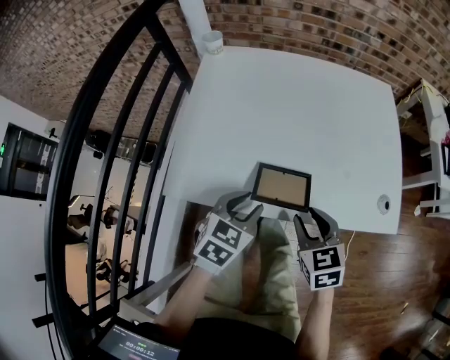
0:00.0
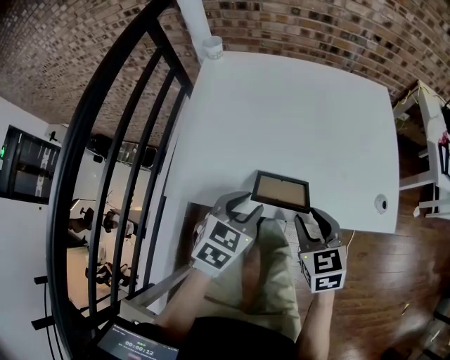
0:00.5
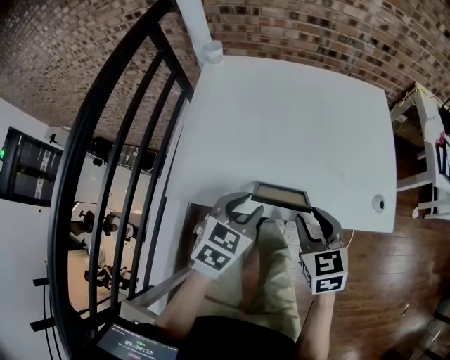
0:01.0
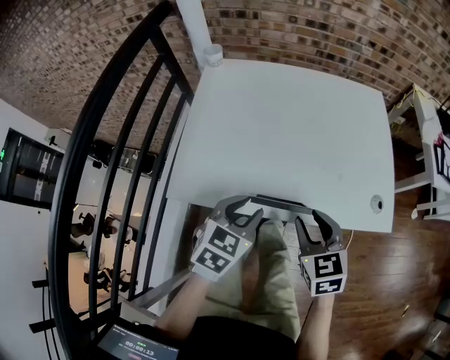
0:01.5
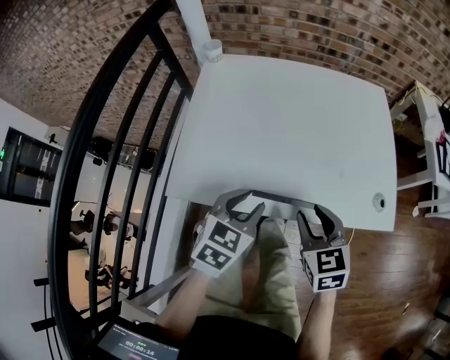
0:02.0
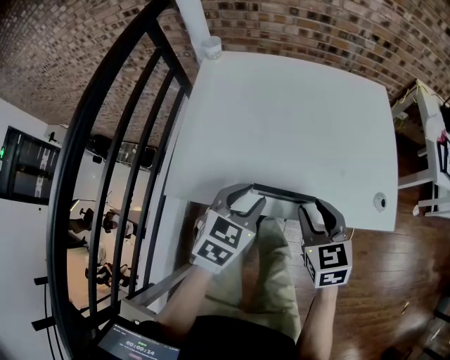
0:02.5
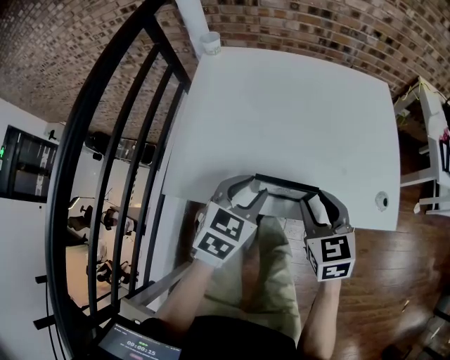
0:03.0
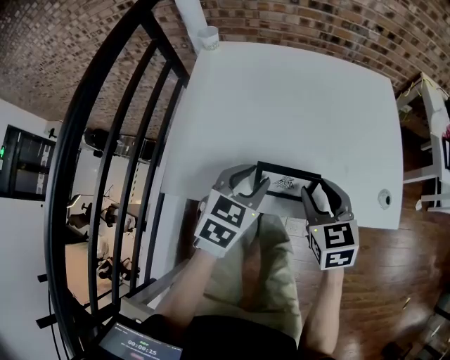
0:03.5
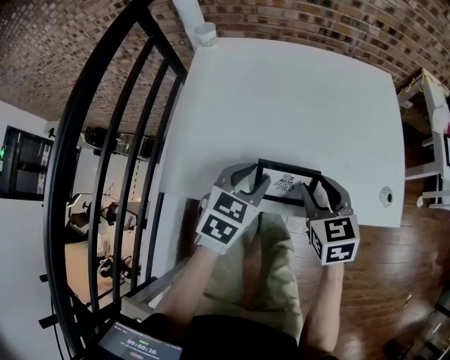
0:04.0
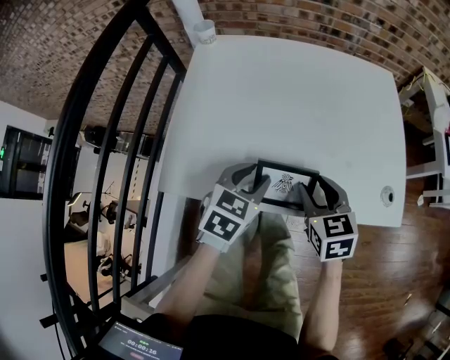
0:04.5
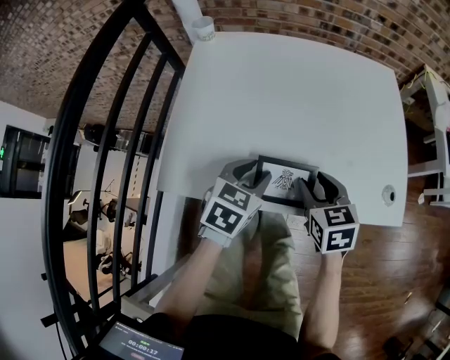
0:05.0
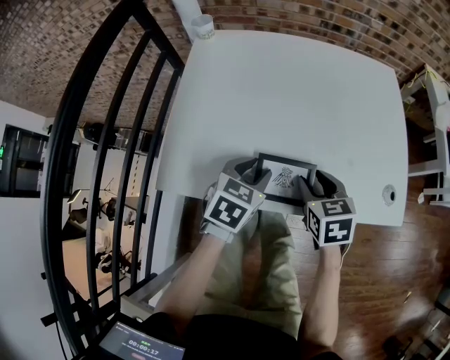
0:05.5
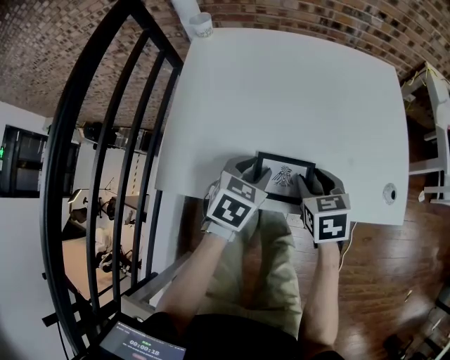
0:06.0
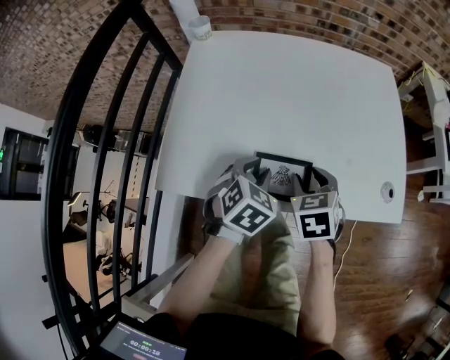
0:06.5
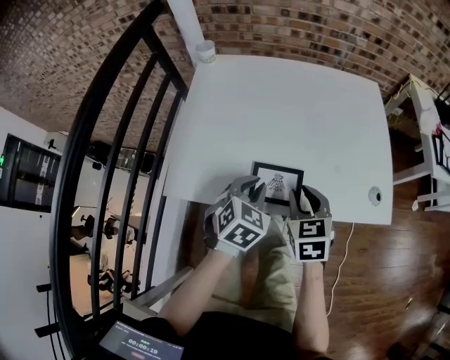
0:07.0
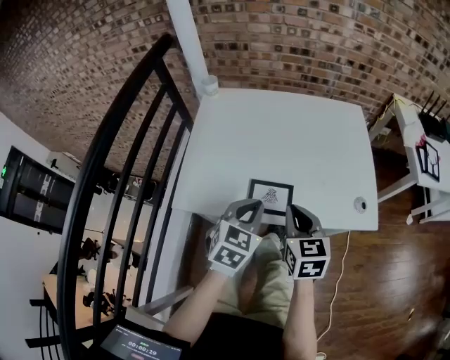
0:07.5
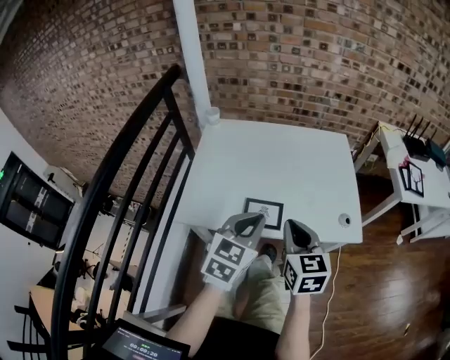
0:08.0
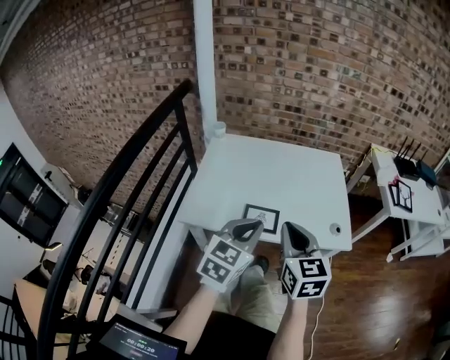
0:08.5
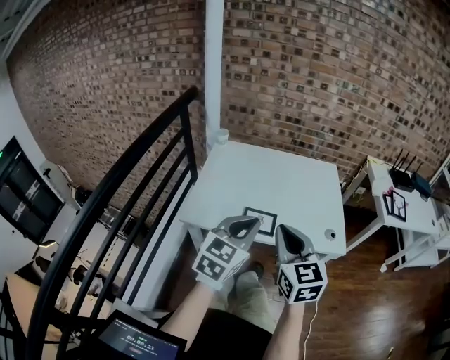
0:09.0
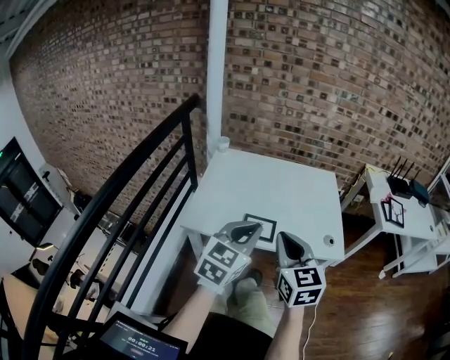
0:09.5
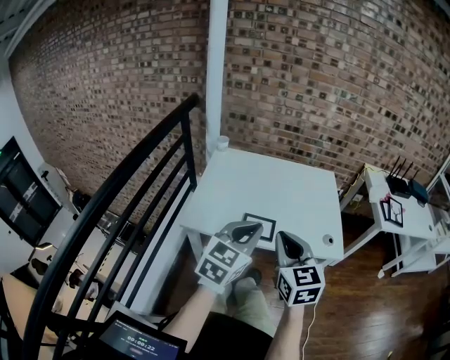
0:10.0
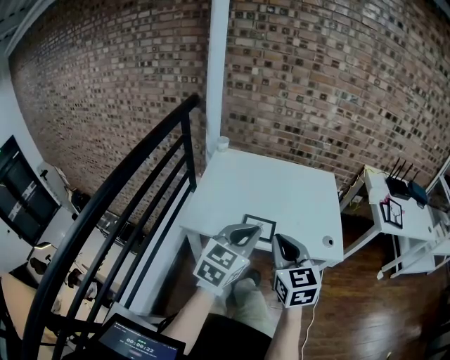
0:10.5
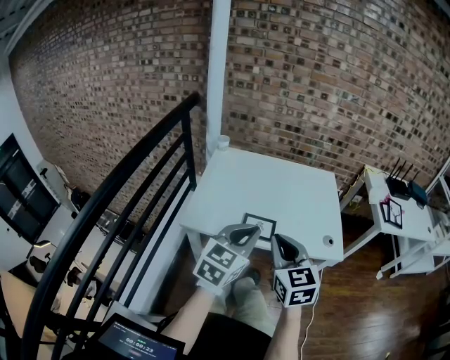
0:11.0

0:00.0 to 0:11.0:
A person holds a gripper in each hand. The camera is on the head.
0:00.0 to 0:02.0: The grippers move only a little.
0:02.0 to 0:03.5: Both grippers travel together forward, roughly 5 cm.
0:03.5 to 0:05.5: Both grippers move downward, approximately 5 cm.
0:05.5 to 0:07.5: Both grippers move upward and backward, roughly 15 cm. The right gripper closes its fingers. Meanwhile the left gripper closes its fingers.
0:07.5 to 0:09.0: Both grippers move upward and backward, about 20 cm. The right gripper turns by roughly 20 degrees, while the left gripper turns by some 20 degrees.
0:09.0 to 0:11.0: The grippers make only small movements.

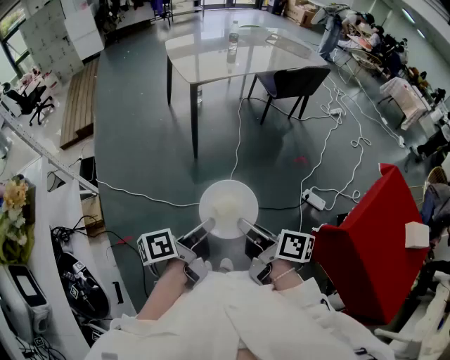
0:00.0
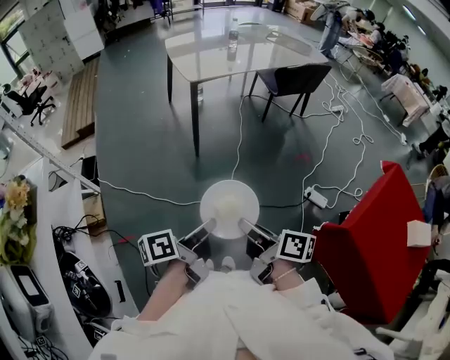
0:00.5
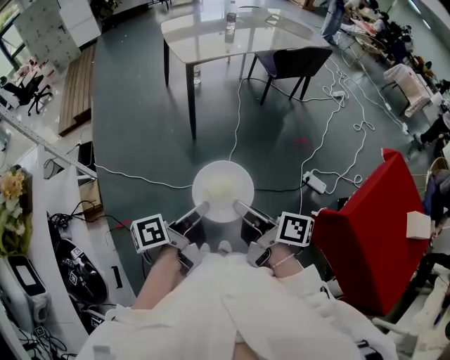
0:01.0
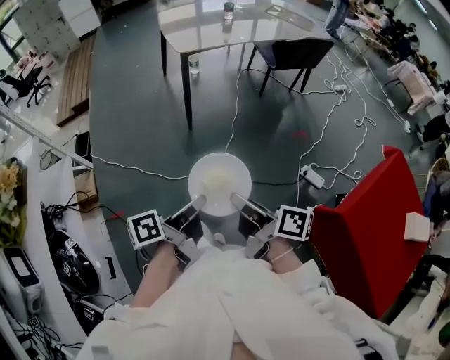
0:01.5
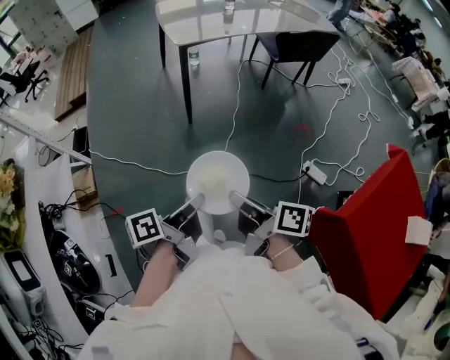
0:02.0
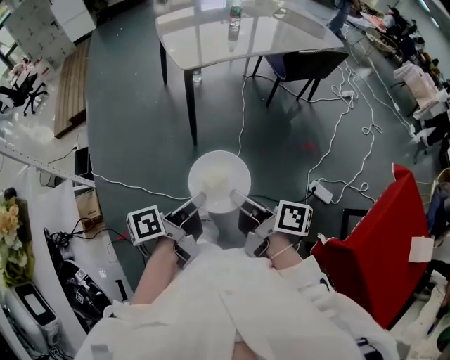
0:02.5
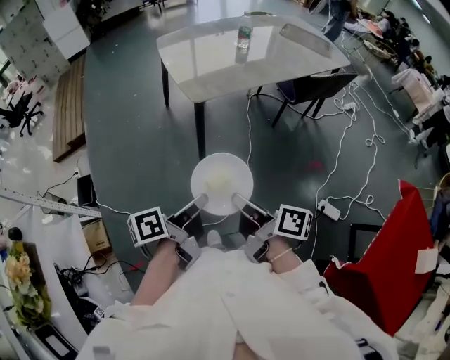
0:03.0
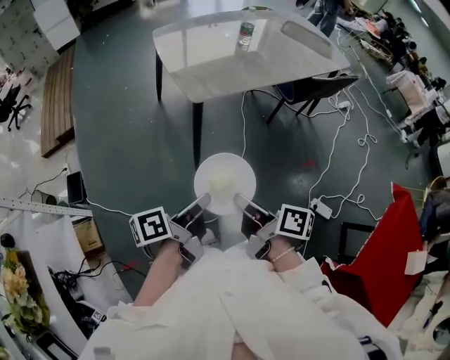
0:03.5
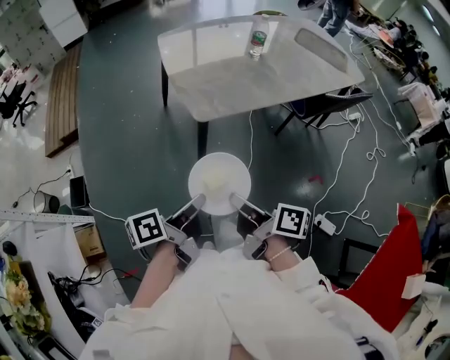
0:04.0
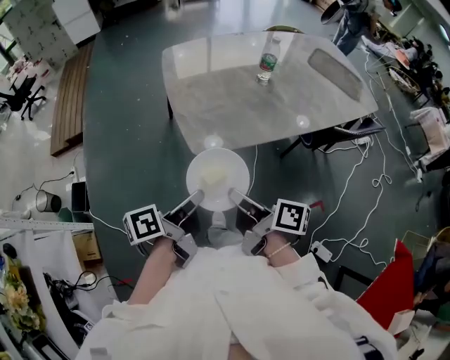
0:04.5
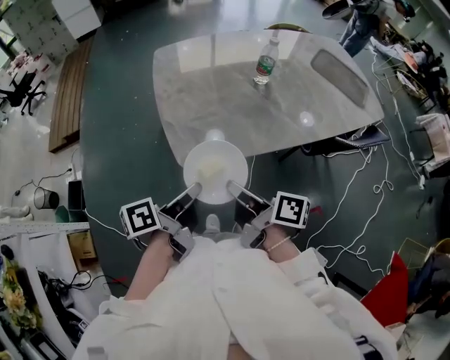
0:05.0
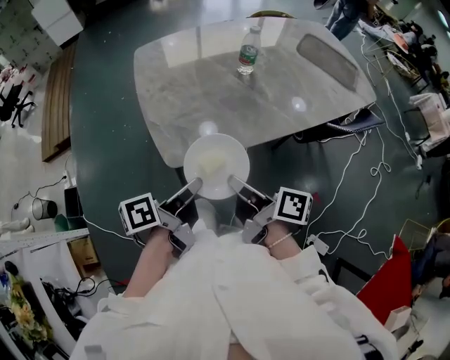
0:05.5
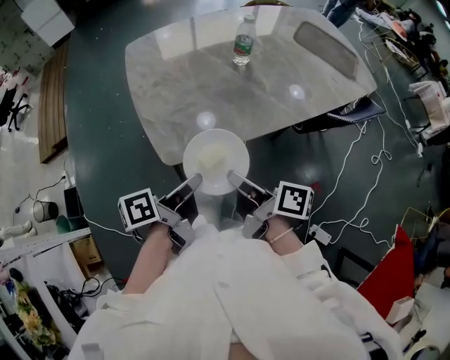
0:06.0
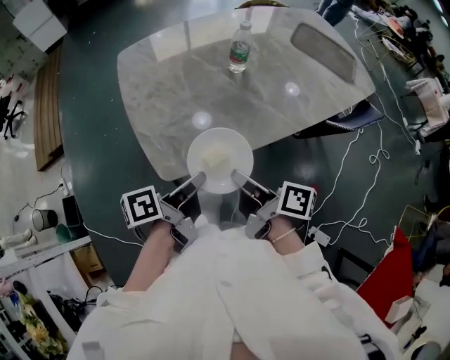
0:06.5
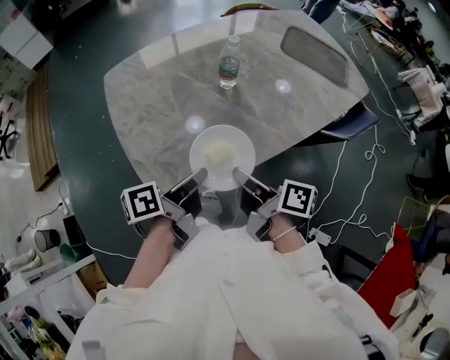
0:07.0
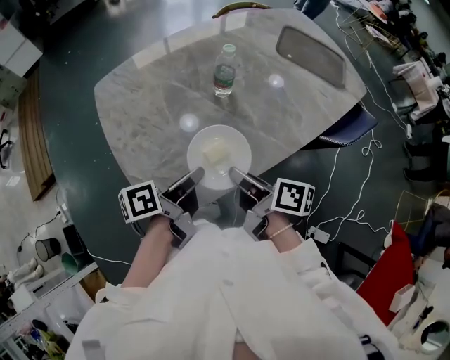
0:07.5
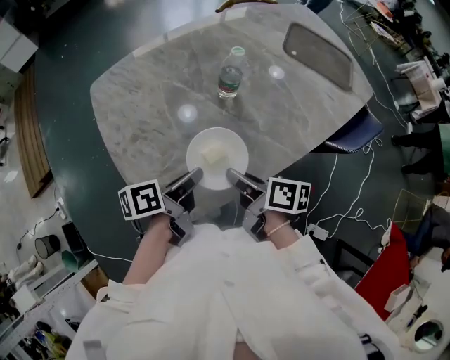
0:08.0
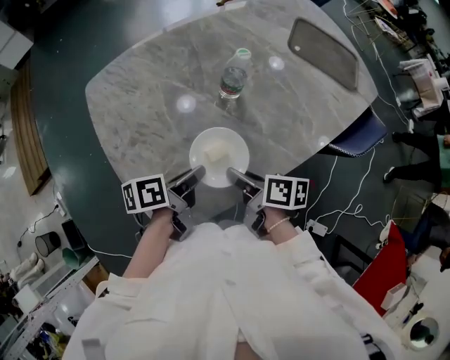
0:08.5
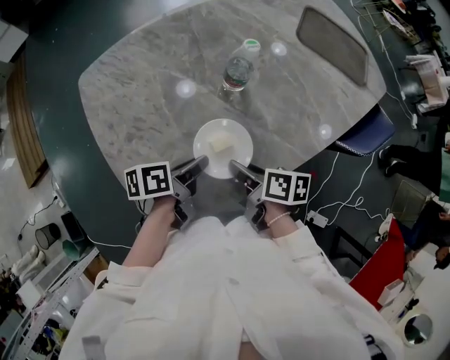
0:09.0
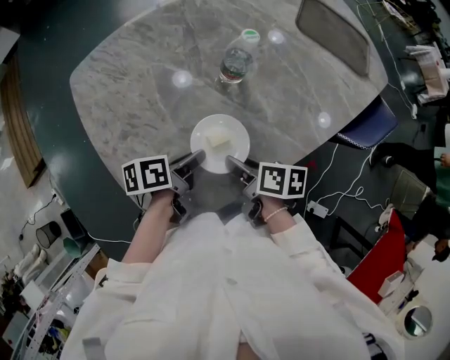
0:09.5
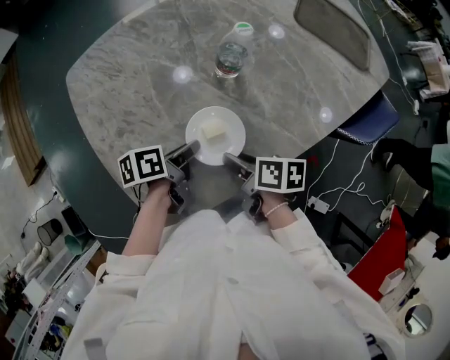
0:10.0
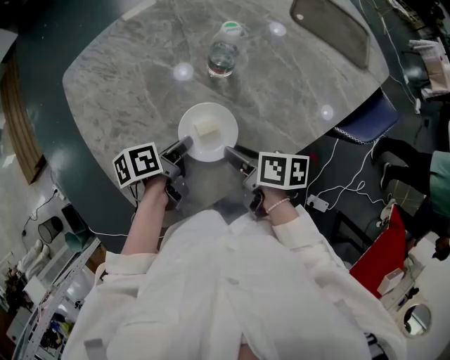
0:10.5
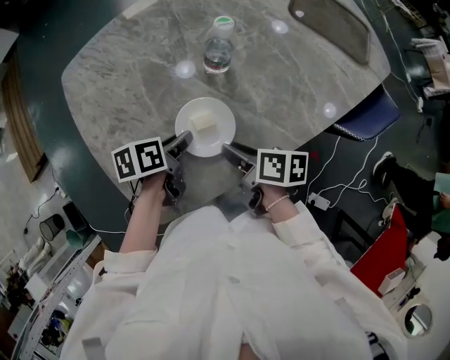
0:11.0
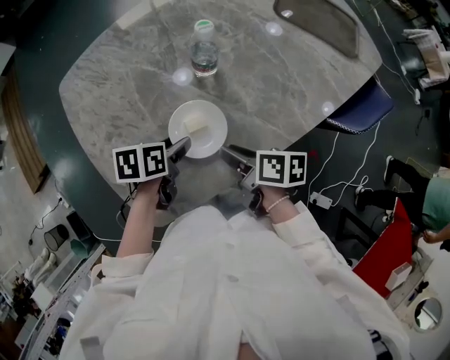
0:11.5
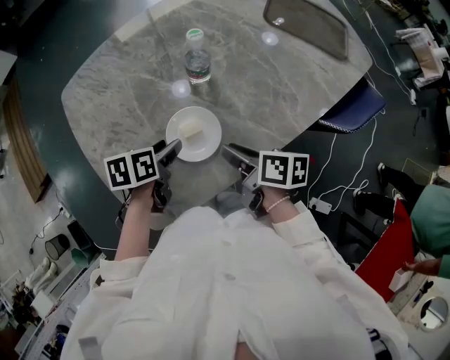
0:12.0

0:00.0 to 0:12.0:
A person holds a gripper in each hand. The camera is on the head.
0:00.0 to 0:02.0: The right gripper shifts by roughly 5 cm.
0:02.0 to 0:04.0: The right gripper moves approximately 50 cm.
0:04.0 to 0:06.0: The right gripper shifts by some 25 cm.
0:06.0 to 0:08.0: The right gripper shifts by about 20 cm.
0:08.0 to 0:10.0: The right gripper travels downward by some 10 cm, and opens.
0:10.0 to 0:12.0: The right gripper travels upward by some 5 cm.

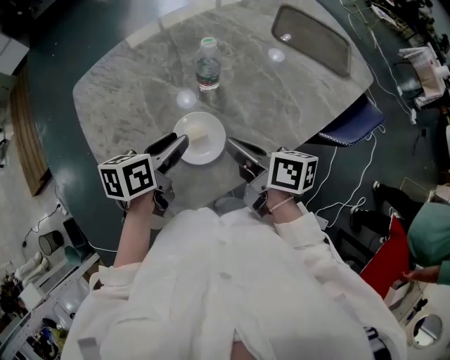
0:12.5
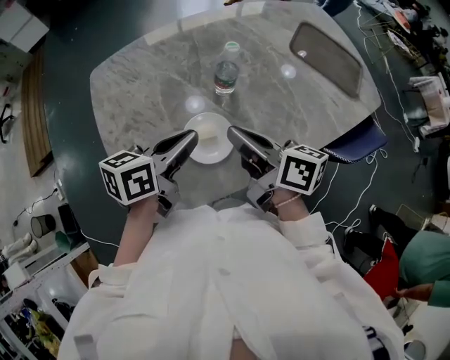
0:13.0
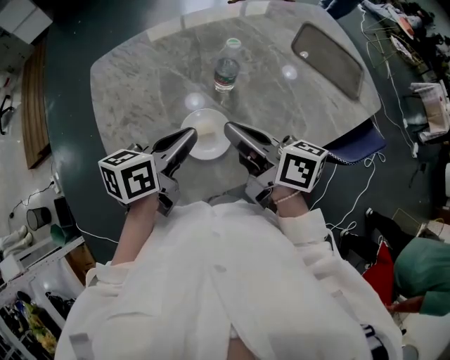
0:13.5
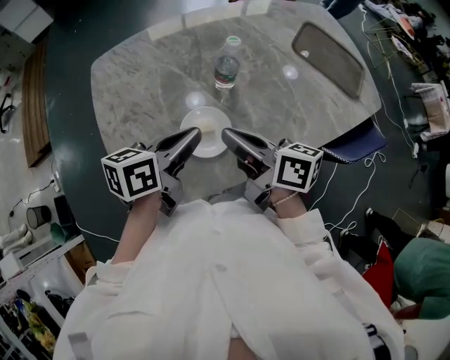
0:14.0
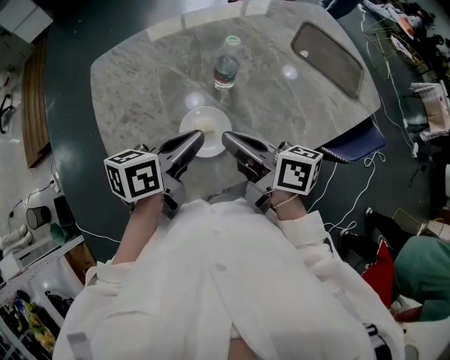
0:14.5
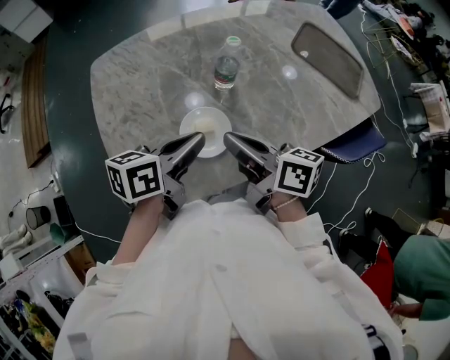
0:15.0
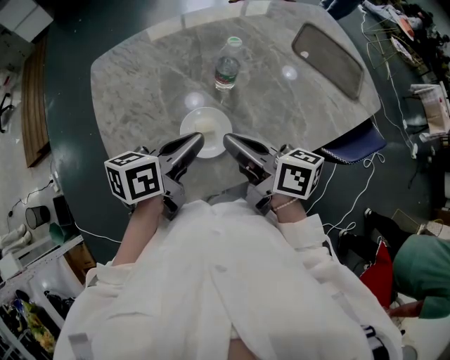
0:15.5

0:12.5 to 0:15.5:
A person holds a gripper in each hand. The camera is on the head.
0:12.5 to 0:14.0: The right gripper is displaced upward by approximately 5 cm.

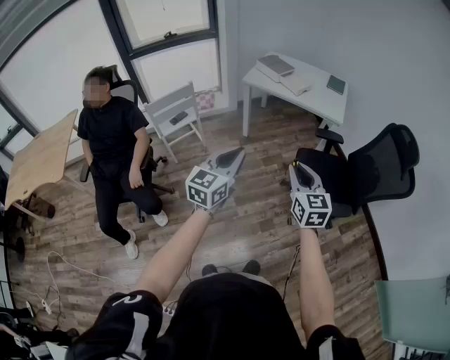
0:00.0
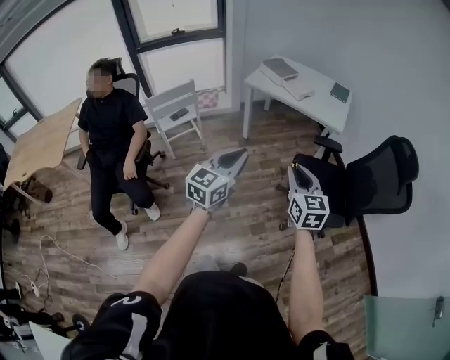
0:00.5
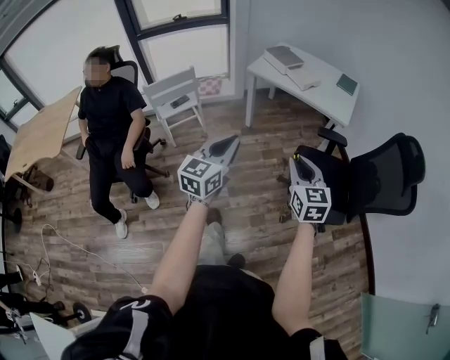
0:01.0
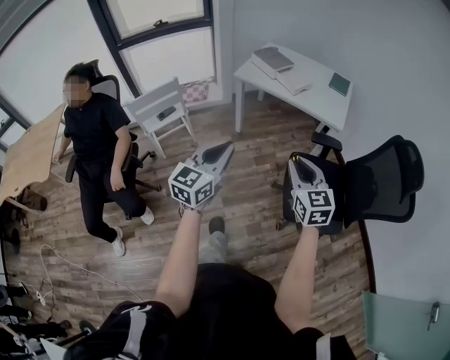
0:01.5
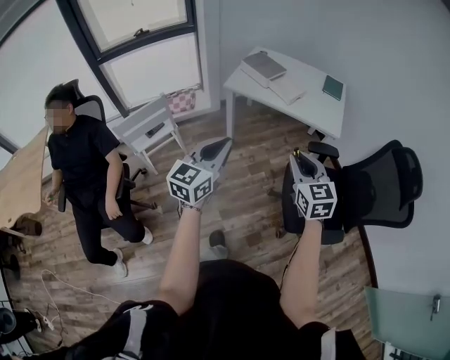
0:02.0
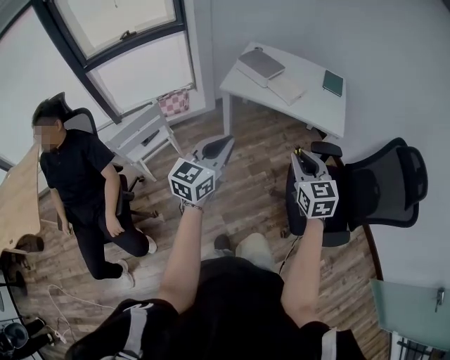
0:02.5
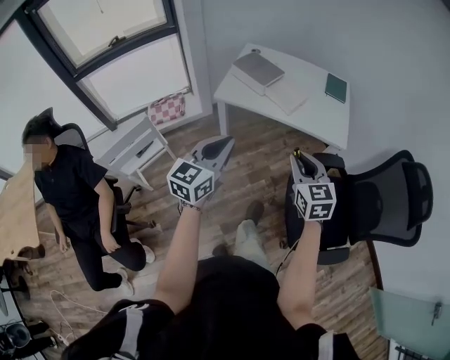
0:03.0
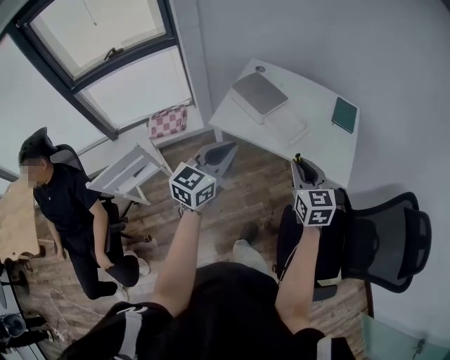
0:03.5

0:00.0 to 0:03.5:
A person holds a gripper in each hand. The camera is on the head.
0:00.0 to 0:02.0: The grippers both shift forward by about 25 cm.
0:02.0 to 0:03.5: The two grippers go about 35 cm forward.
